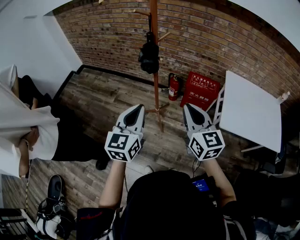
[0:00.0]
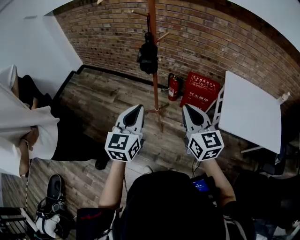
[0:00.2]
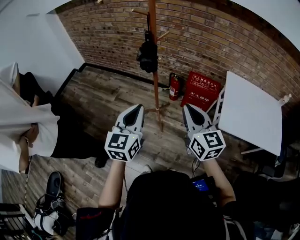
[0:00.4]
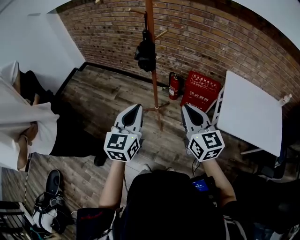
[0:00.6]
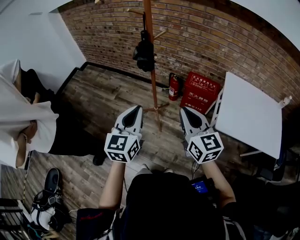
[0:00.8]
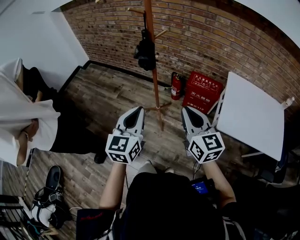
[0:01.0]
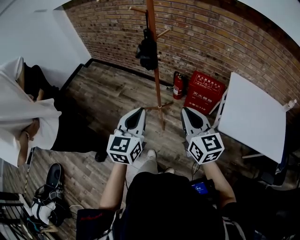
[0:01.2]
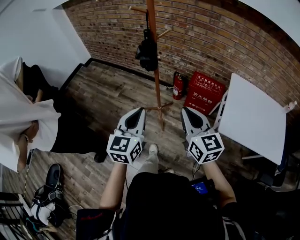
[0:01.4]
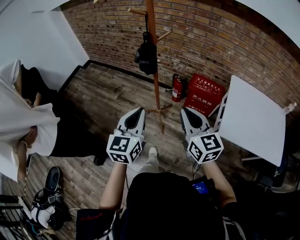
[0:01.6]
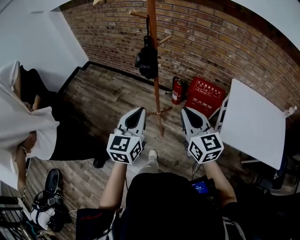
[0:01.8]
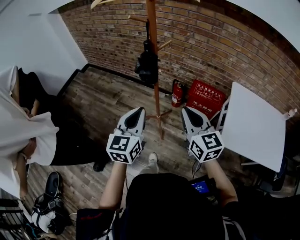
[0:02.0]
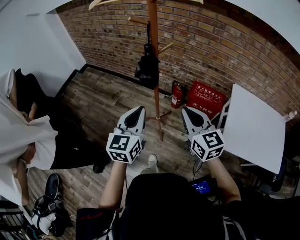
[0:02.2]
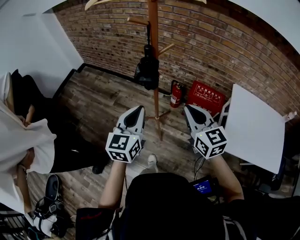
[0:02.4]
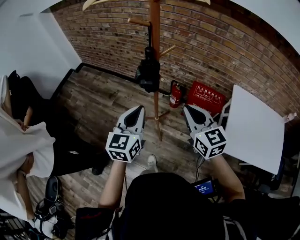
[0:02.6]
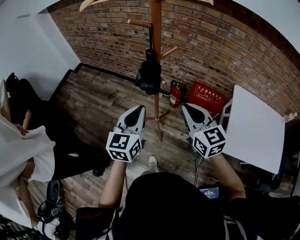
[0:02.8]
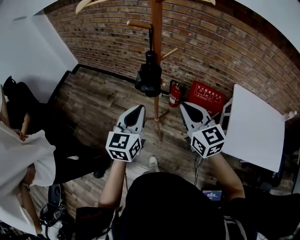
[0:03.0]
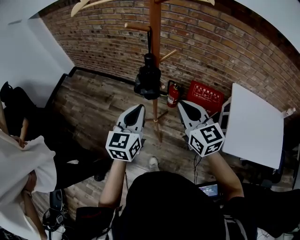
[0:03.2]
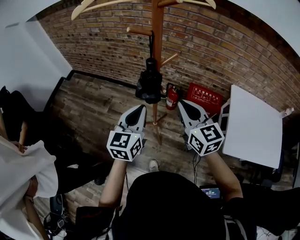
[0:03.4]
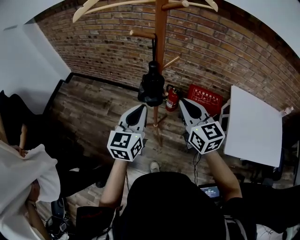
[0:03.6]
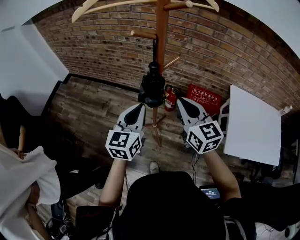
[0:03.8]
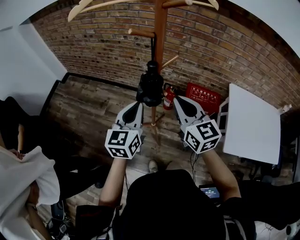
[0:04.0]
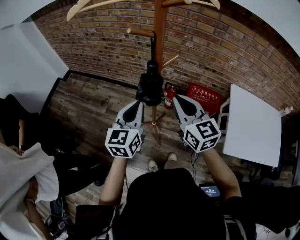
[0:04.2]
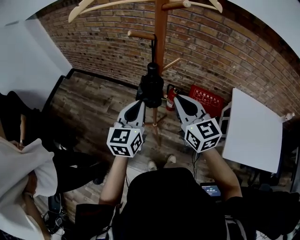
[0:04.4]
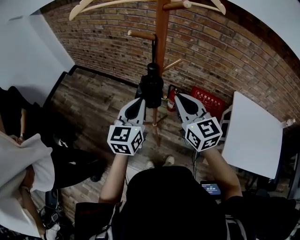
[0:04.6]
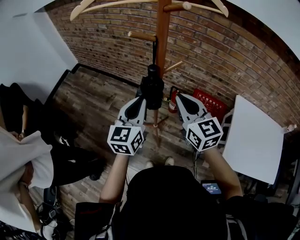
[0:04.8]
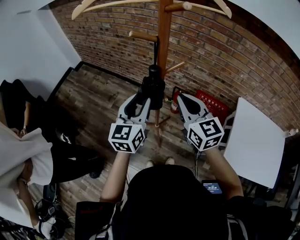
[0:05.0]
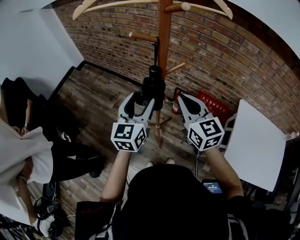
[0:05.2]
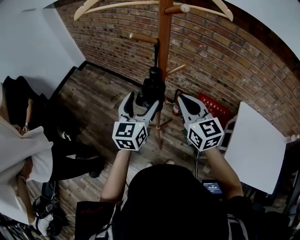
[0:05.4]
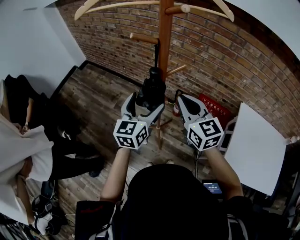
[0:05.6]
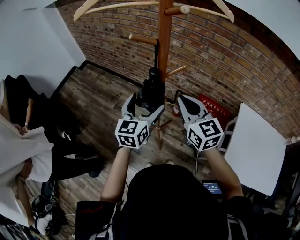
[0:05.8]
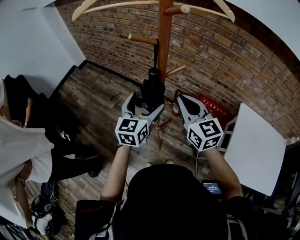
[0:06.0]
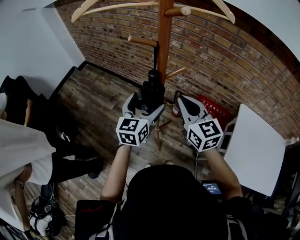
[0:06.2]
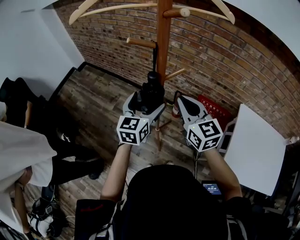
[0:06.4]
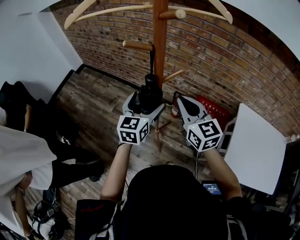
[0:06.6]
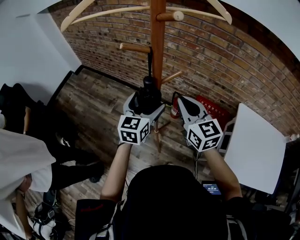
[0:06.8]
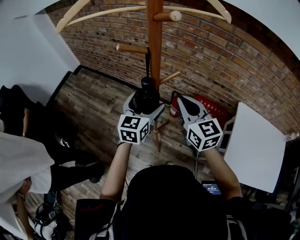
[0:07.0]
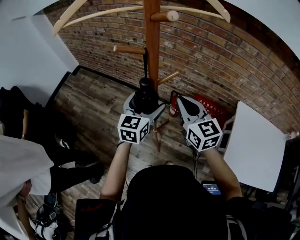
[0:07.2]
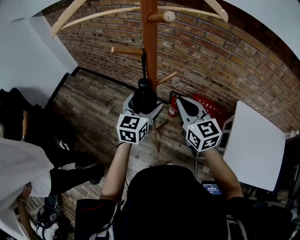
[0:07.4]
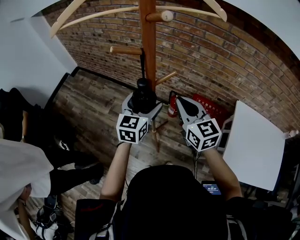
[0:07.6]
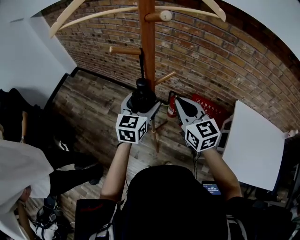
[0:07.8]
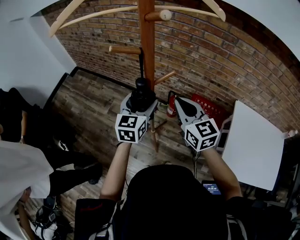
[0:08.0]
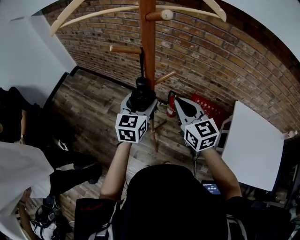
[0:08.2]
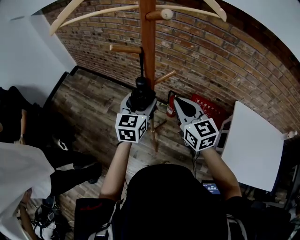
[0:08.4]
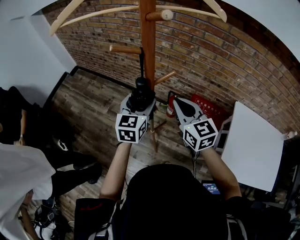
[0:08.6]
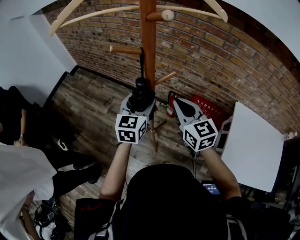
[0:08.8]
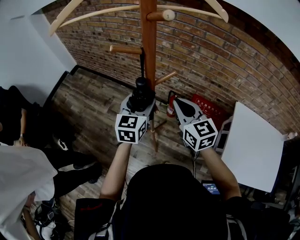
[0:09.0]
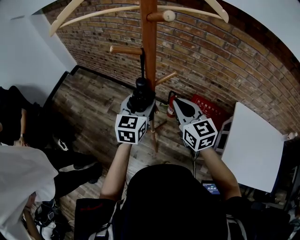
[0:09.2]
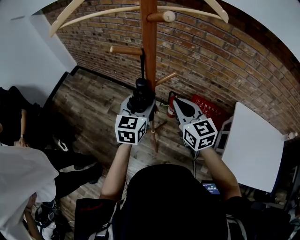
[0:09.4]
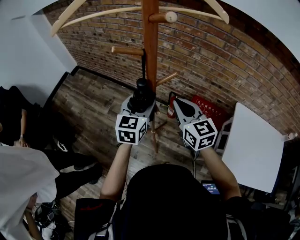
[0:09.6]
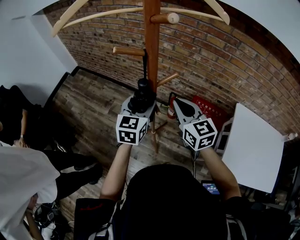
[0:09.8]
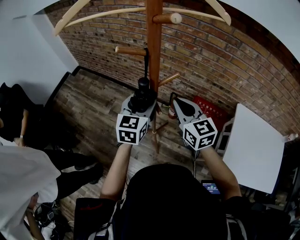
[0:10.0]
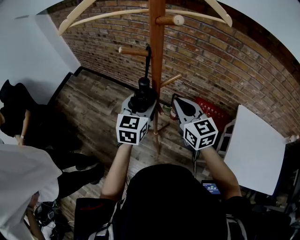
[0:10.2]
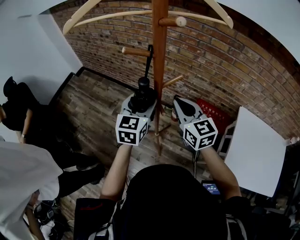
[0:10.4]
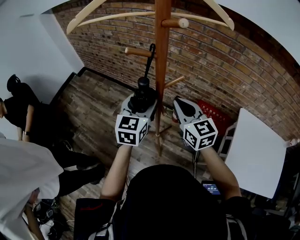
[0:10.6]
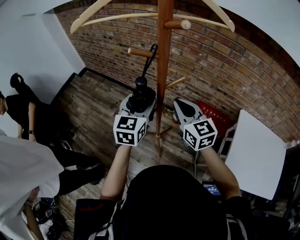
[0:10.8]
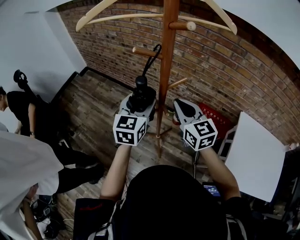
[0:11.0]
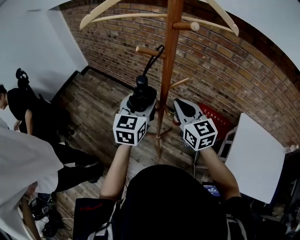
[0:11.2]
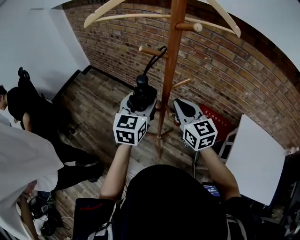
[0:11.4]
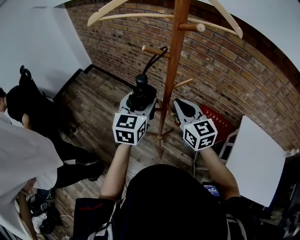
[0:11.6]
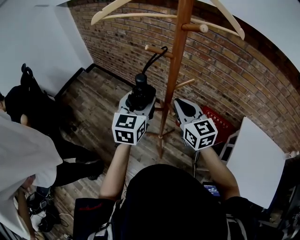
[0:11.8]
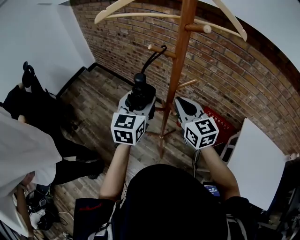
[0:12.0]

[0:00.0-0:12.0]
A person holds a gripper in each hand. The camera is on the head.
0:00.0 to 0:01.6: The left gripper shifts by approximately 5 cm.
0:01.6 to 0:03.0: Both grippers move forward, some 20 cm.
0:03.0 to 0:04.4: Both grippers travel together forward, roughly 5 cm.
0:04.4 to 0:06.0: The left gripper ends up roughly 5 cm from where it was, and opens.
0:06.0 to 0:07.6: The left gripper shifts by some 5 cm.
0:07.6 to 0:09.0: The left gripper closes its fingers.
0:09.0 to 0:10.4: The grippers make only small movements.
0:10.4 to 0:12.0: The right gripper ends up about 5 cm from where it was. Meanwhile the left gripper shifts about 5 cm to the left.

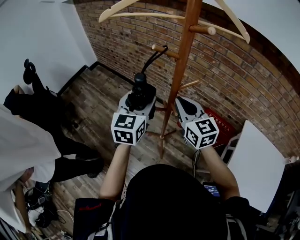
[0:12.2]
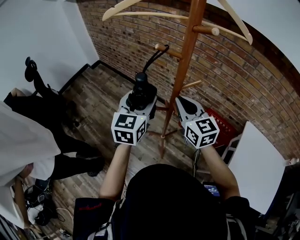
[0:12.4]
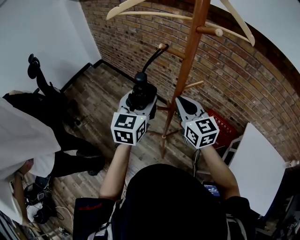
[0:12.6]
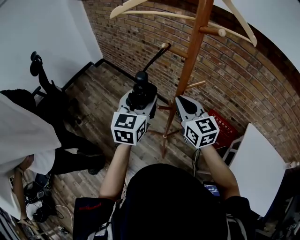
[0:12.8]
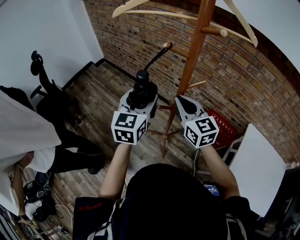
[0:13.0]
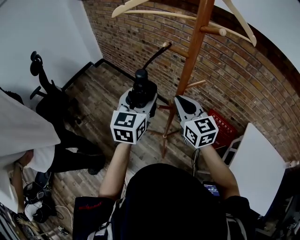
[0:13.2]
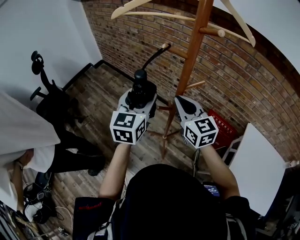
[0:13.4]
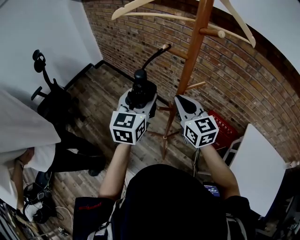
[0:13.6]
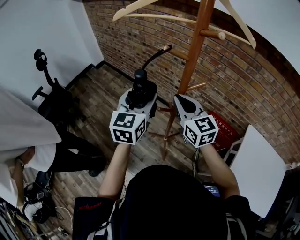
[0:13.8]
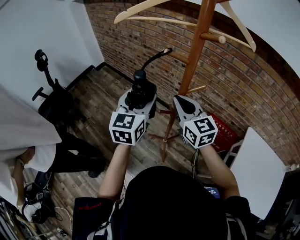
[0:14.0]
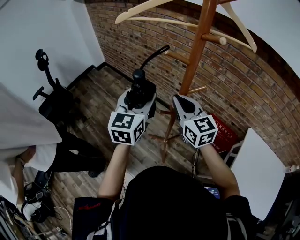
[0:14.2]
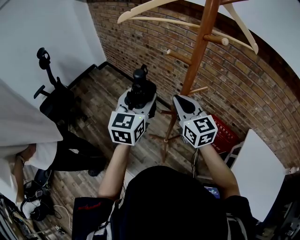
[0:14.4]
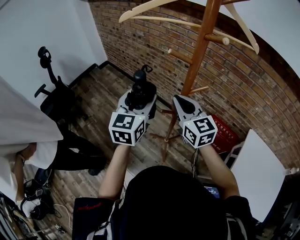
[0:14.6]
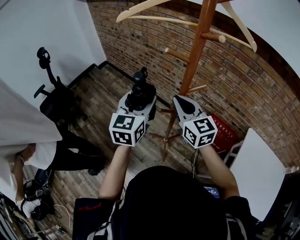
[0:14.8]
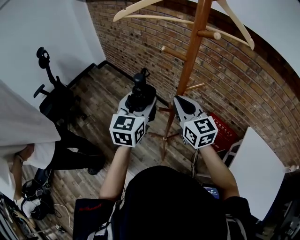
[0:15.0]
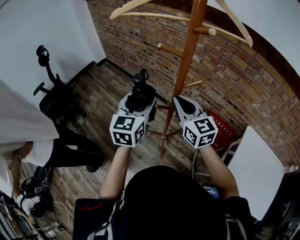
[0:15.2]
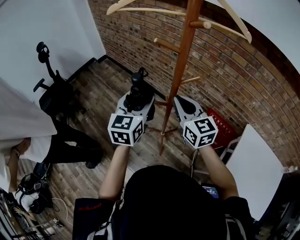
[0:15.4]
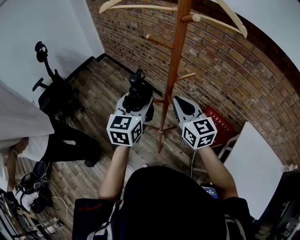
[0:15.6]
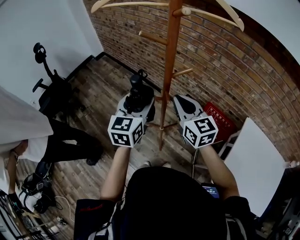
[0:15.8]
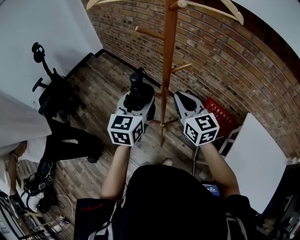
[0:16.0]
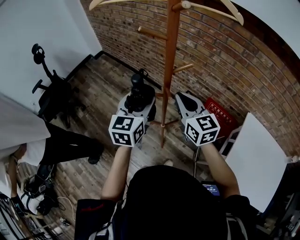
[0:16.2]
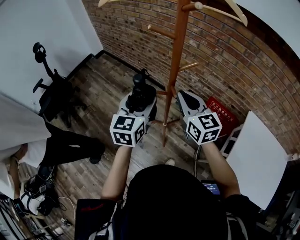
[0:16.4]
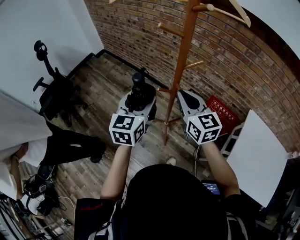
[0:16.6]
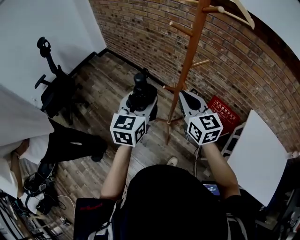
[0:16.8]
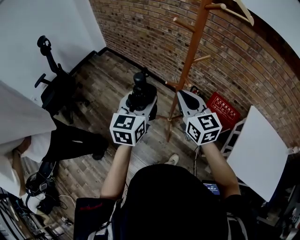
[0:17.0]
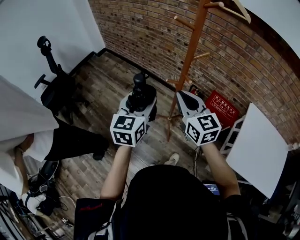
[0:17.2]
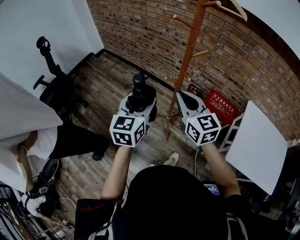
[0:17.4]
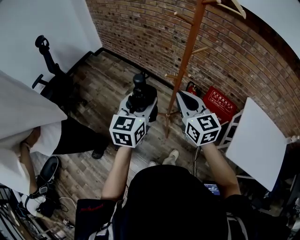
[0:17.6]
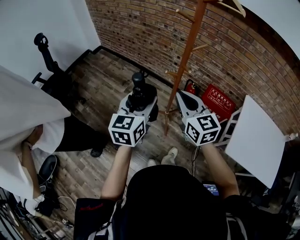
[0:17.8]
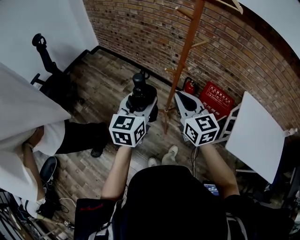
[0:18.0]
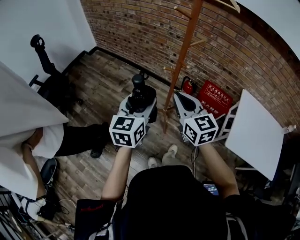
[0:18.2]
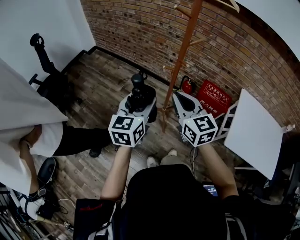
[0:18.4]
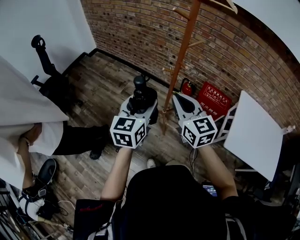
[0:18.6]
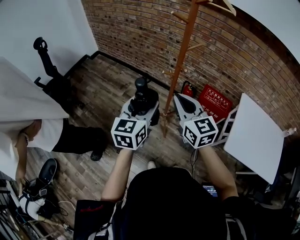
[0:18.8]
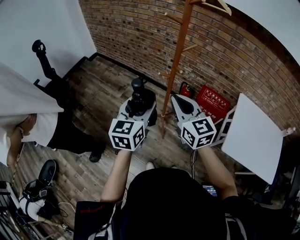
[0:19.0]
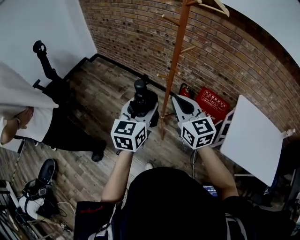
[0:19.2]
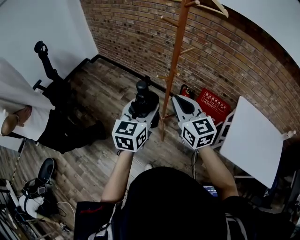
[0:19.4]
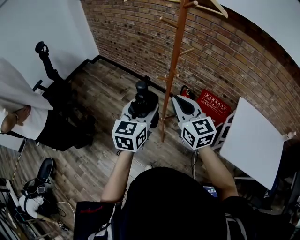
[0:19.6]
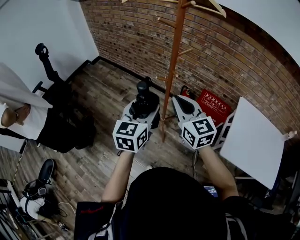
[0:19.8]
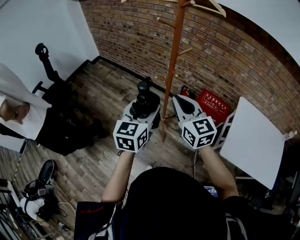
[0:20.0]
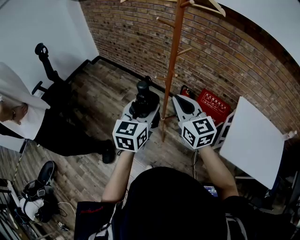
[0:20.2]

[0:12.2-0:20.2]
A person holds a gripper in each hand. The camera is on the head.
0:12.2 to 0:15.4: The grippers move only a little.
0:15.4 to 0:17.0: The two grippers go about 10 cm backward and to the left.
0:17.0 to 0:18.6: The grippers both shift backward by approximately 10 cm.
0:18.6 to 0:20.2: Both grippers travel together to the right, about 5 cm.

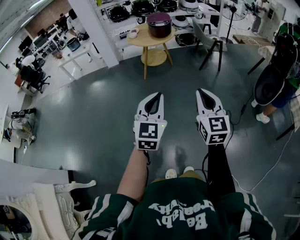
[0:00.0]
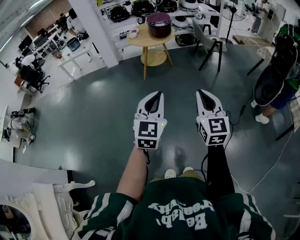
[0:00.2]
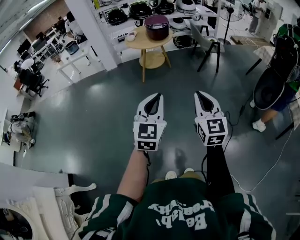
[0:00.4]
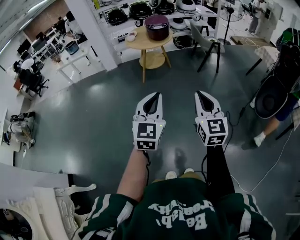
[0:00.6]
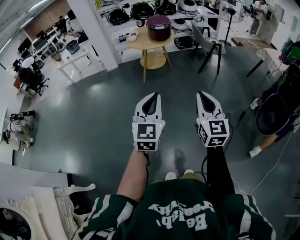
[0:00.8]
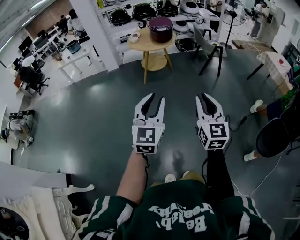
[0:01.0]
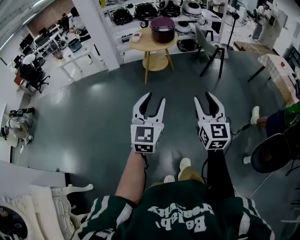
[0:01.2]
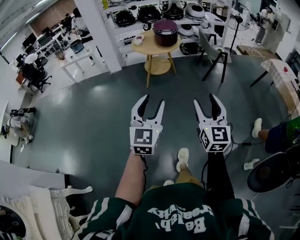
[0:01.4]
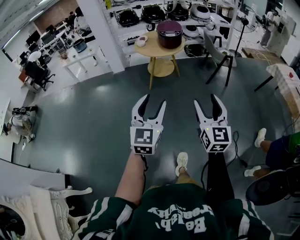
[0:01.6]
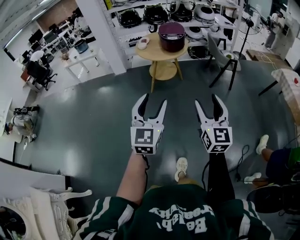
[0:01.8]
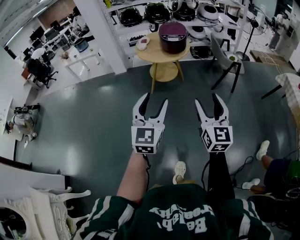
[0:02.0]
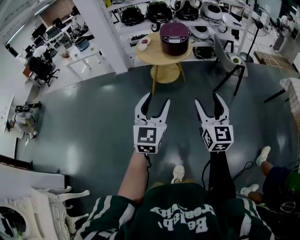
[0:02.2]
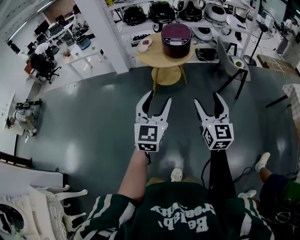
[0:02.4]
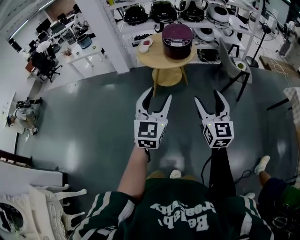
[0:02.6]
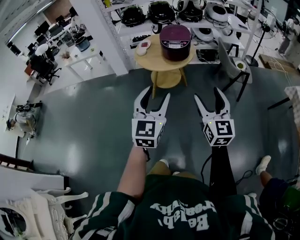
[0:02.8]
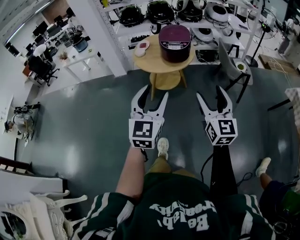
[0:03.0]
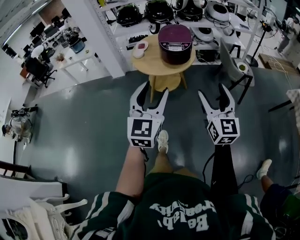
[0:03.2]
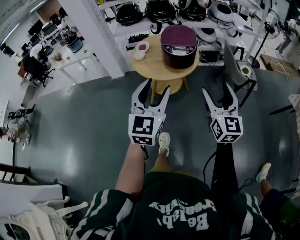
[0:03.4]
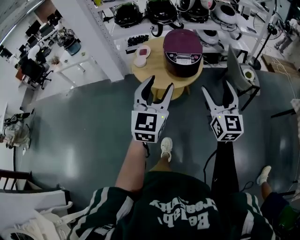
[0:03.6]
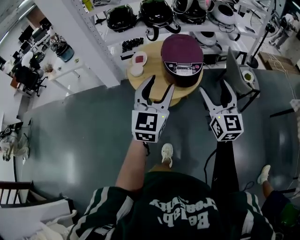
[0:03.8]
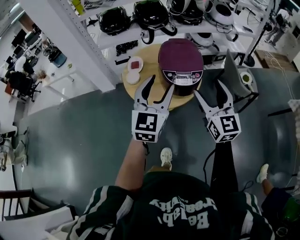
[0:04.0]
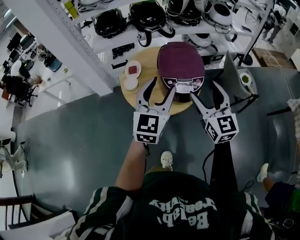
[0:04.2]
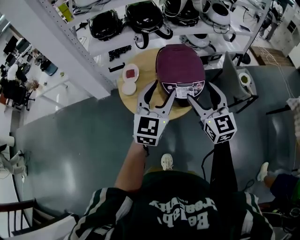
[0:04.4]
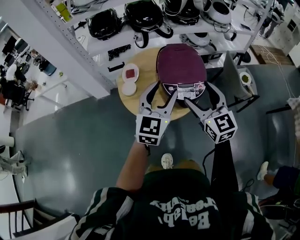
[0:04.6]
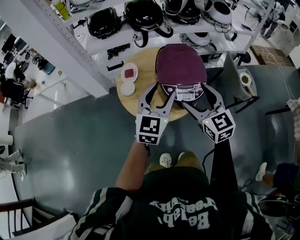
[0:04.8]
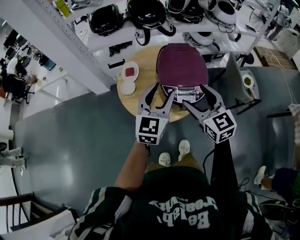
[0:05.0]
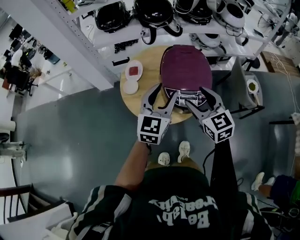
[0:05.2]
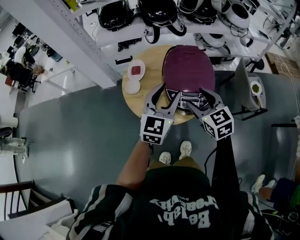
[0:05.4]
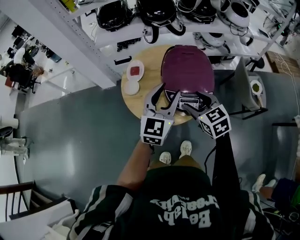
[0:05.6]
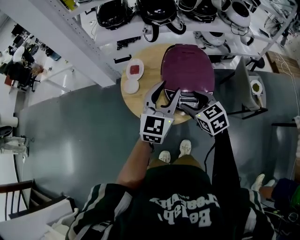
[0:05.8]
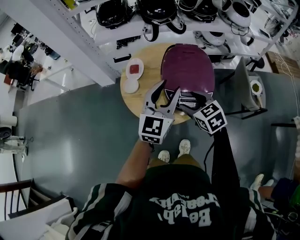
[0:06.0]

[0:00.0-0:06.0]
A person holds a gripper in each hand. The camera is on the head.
0:00.0 to 0:01.6: Both grippers travel together forward, roughly 10 cm. The right gripper opens. Meanwhile the left gripper opens its fingers.
0:01.6 to 0:03.0: Both grippers move forward, approximately 35 cm.
0:03.0 to 0:04.4: The pair of grippers is taken forward, some 50 cm.
0:04.4 to 0:06.0: The right gripper is displaced downward and forward by approximately 15 cm, and tips its fingers downward by roughly 30 degrees. The left gripper moves forward, about 10 cm.
